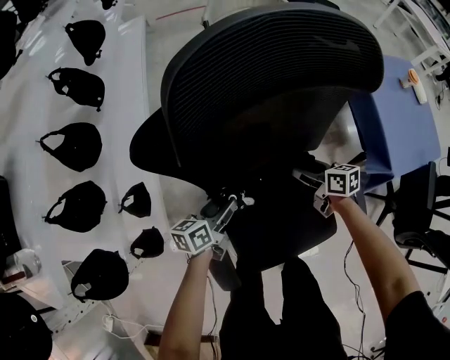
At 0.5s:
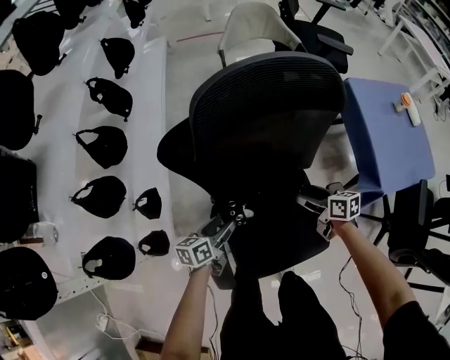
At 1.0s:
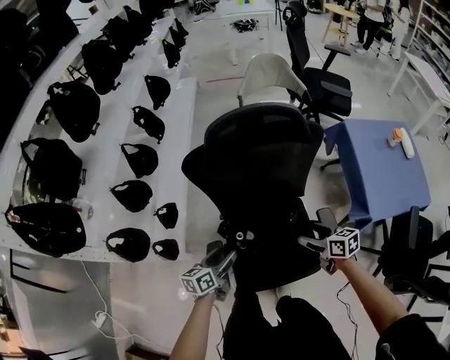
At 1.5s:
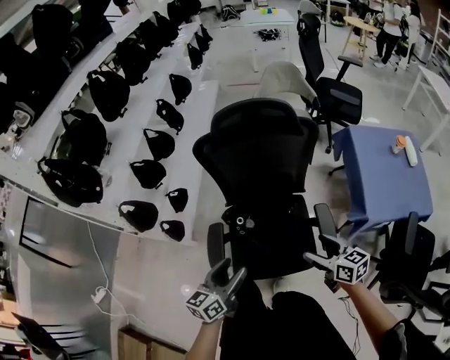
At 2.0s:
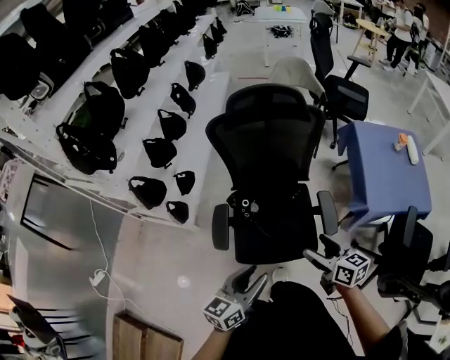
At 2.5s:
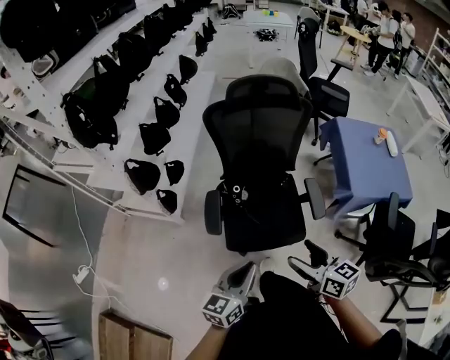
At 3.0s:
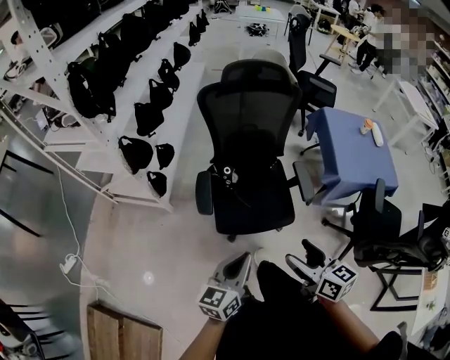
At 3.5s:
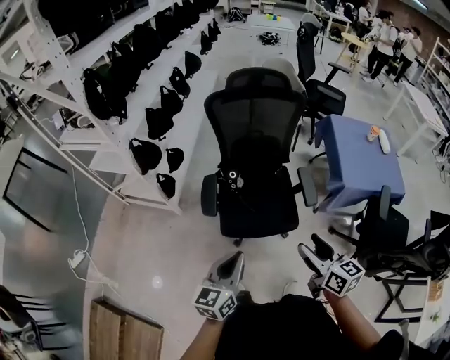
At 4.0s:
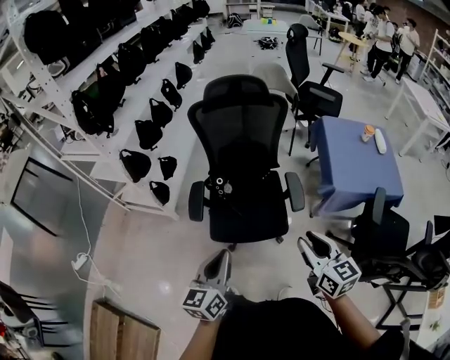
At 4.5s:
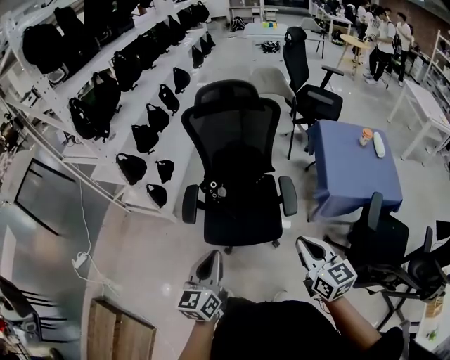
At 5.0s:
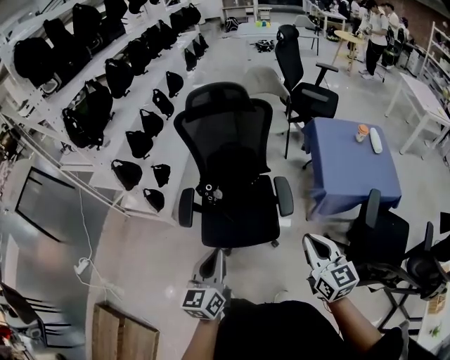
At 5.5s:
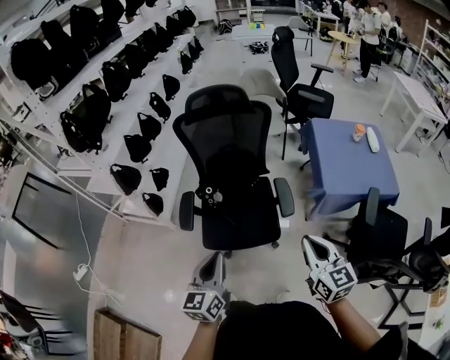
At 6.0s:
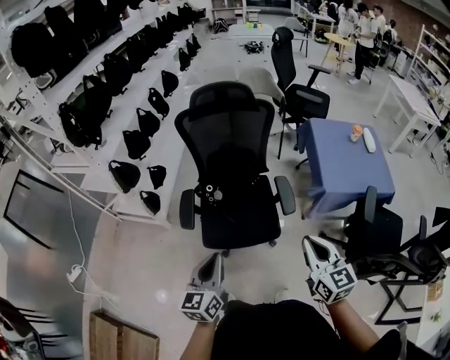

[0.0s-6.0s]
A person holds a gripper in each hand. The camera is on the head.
0.0s to 2.0s: Both grippers move backward and upward, some 50 cm. The left gripper rotates roughly 30 degrees. The right gripper swivels approximately 20 degrees.
2.0s to 4.0s: The grippers both shift backward and upward by some 20 cm. The right gripper changes its angle by roughly 20 degrees, and closes up. Meanwhile the left gripper closes up.
4.0s to 6.0s: The right gripper travels to the right and back again, approximately 10 cm each way. Meanwhile the left gripper moves about 10 cm to the right and comes back.

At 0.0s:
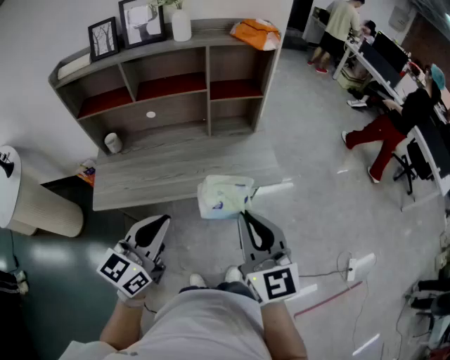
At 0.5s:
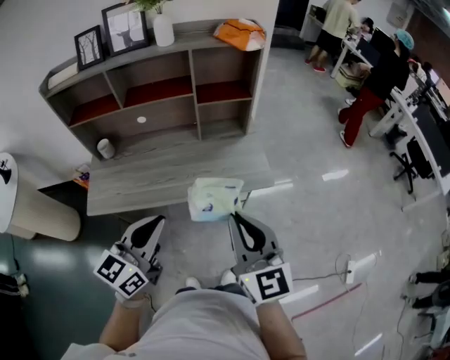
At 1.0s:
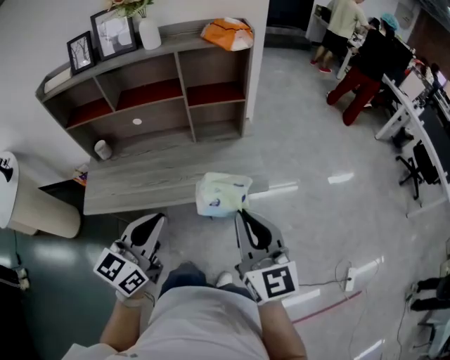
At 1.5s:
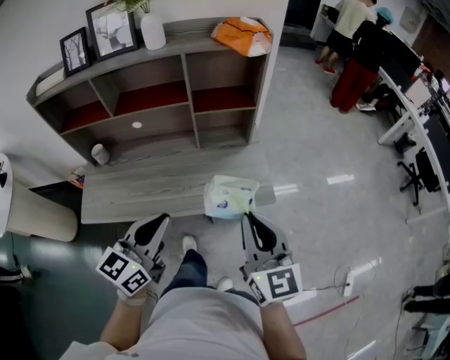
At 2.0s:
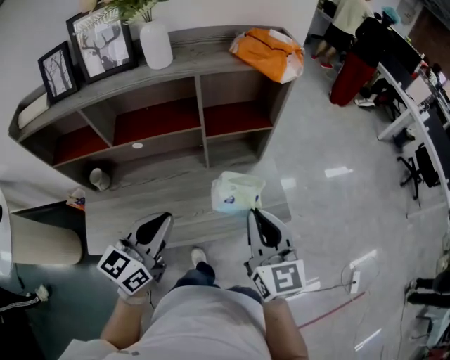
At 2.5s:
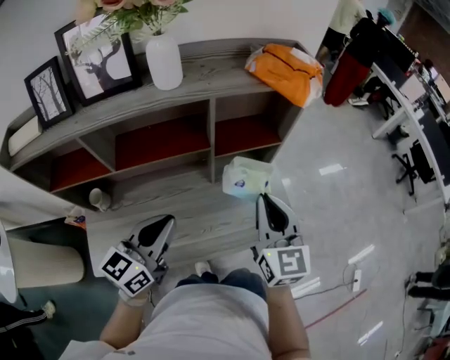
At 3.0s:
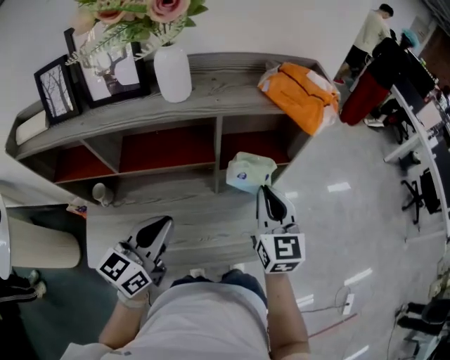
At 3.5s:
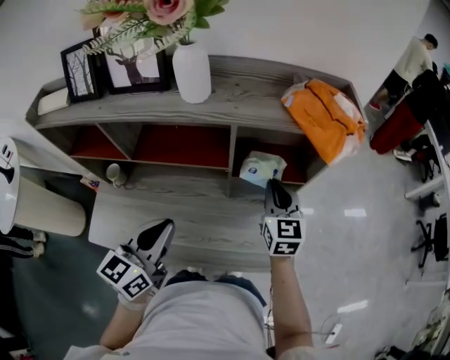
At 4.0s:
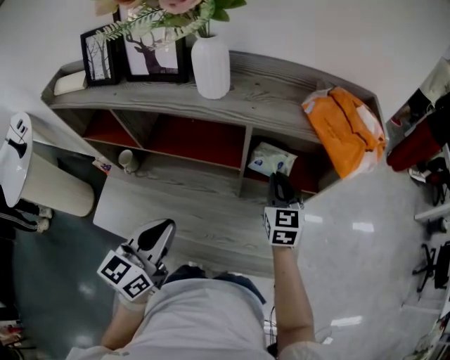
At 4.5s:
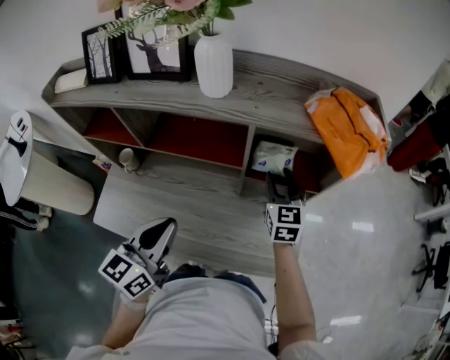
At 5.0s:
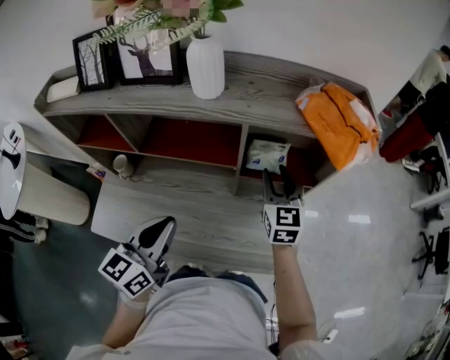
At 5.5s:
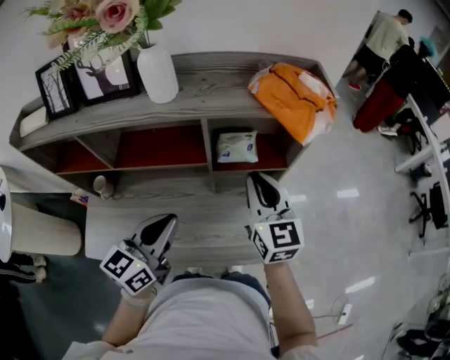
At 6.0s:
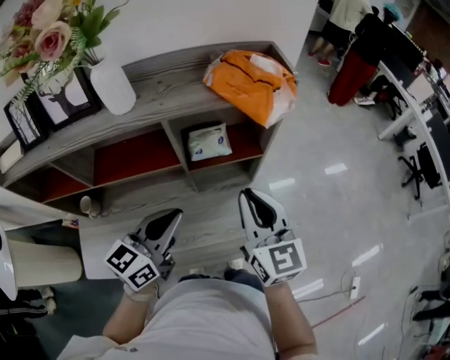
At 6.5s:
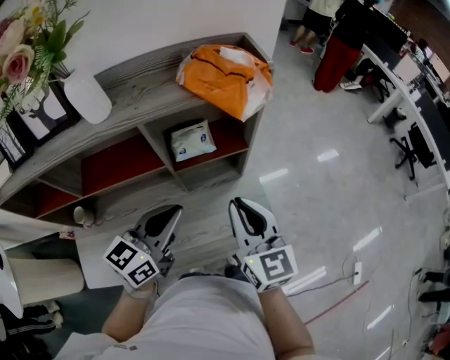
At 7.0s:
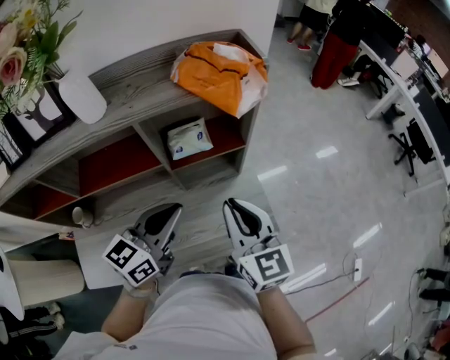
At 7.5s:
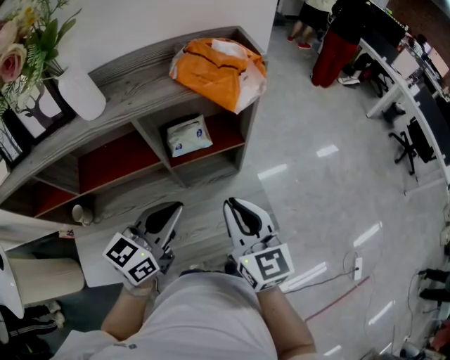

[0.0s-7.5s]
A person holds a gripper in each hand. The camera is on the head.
0.0s to 2.0s: Both grippers travel together forward, about 25 cm.
2.0s to 4.0s: The right gripper moves forward, some 30 cm. Meanwhile the left gripper is displaced forward by approximately 10 cm, and changes its angle by some 30 degrees.
4.0s to 5.5s: The right gripper shifts some 15 cm upward and backward, and opens, then closes once more; the left gripper shifts by about 5 cm.
5.5s to 7.5s: The left gripper goes roughly 10 cm to the right, and swivels approximately 20 degrees; the right gripper travels backward and to the right by approximately 10 cm.

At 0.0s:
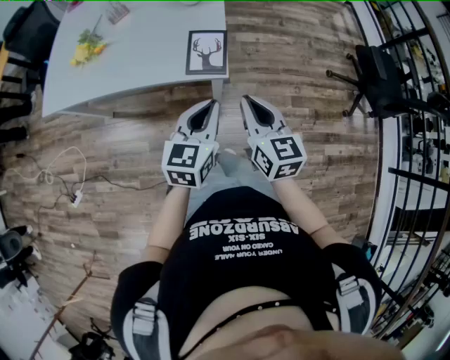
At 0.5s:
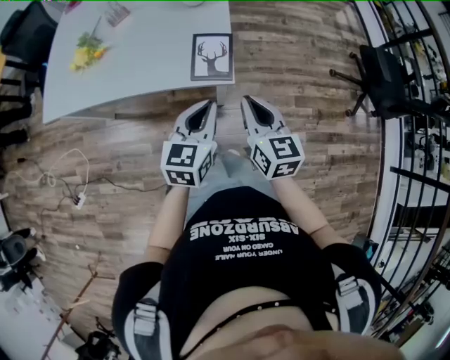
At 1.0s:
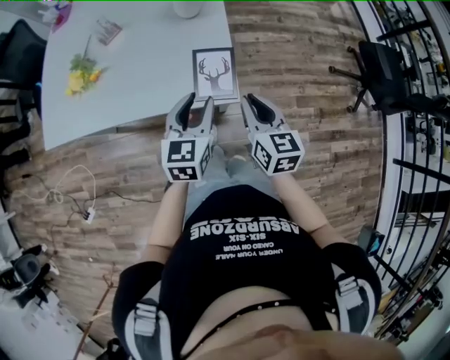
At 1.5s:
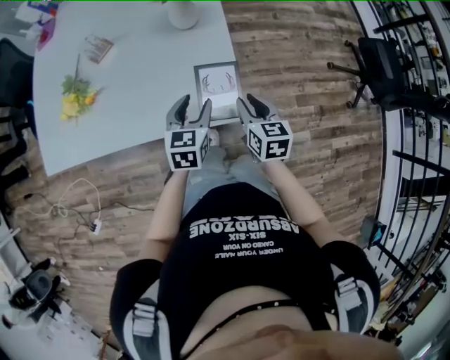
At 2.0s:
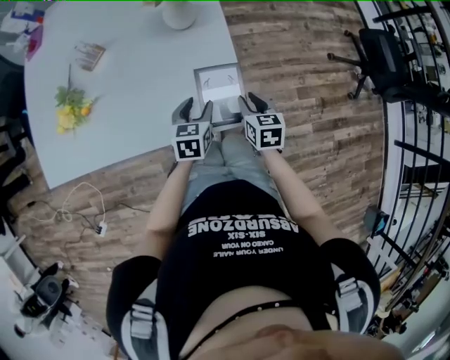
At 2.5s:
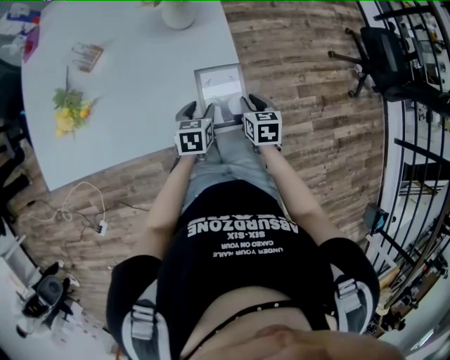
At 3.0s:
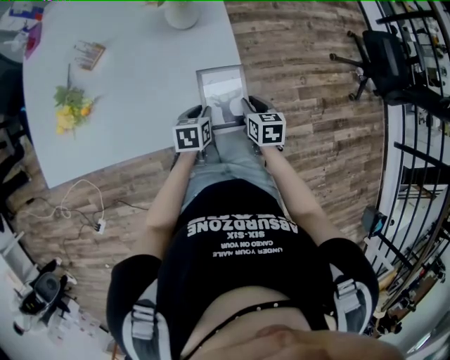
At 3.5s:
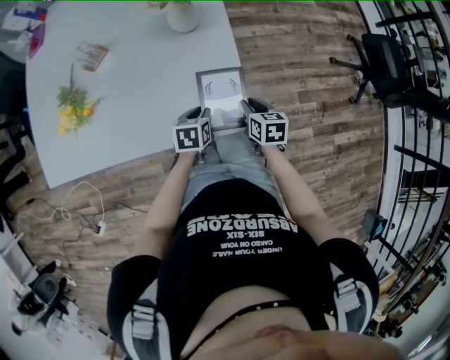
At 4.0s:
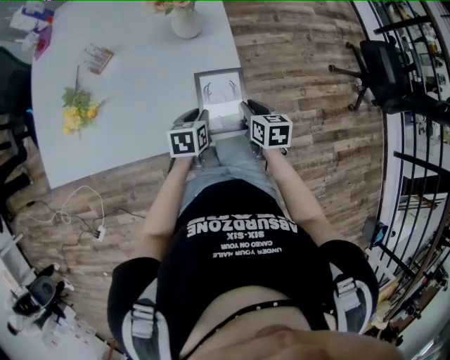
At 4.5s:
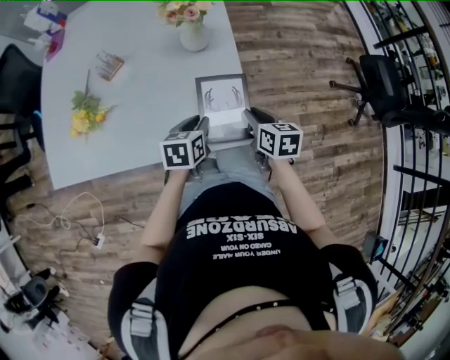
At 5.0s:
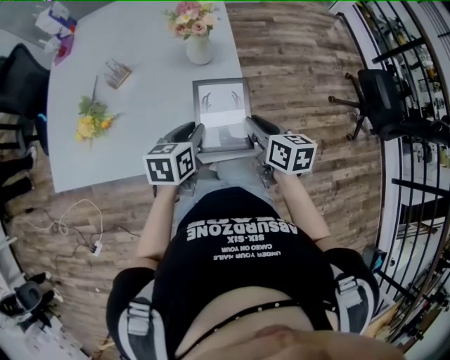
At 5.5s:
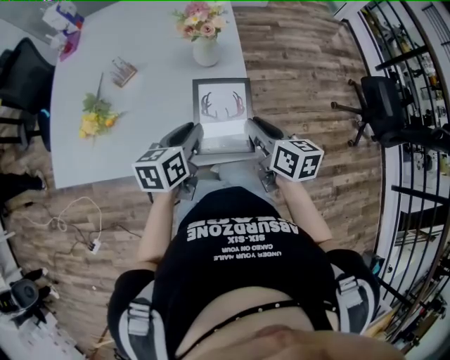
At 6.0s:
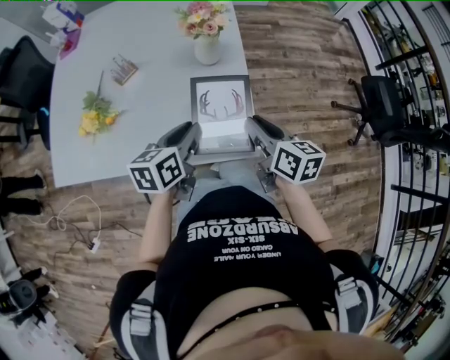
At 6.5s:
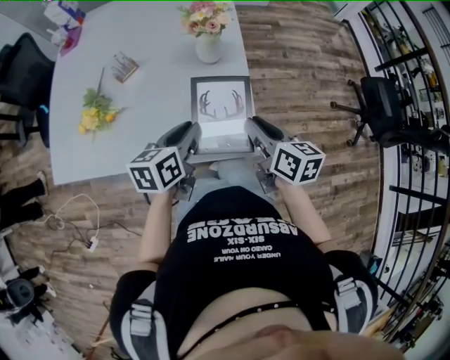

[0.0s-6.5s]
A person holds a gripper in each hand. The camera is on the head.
0.0s to 2.0s: The left gripper heads forward, downward and to the left, covering some 30 cm, rotates some 20 degrees, and opens up; the right gripper is displaced downward and forward by roughly 30 cm, swivels about 30 degrees, and opens its fingers.
2.0s to 4.5s: Both grippers move upward, approximately 5 cm. The left gripper closes.
4.5s to 6.5s: The right gripper goes about 10 cm upward, while the left gripper goes approximately 15 cm upward and to the left.

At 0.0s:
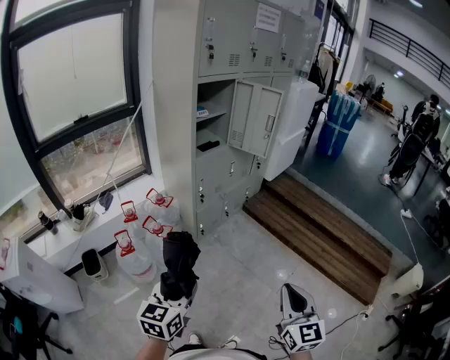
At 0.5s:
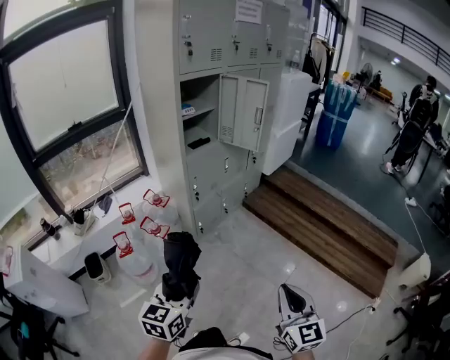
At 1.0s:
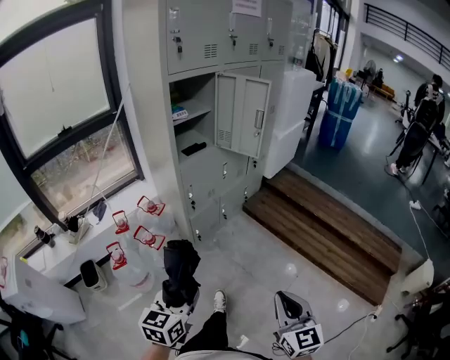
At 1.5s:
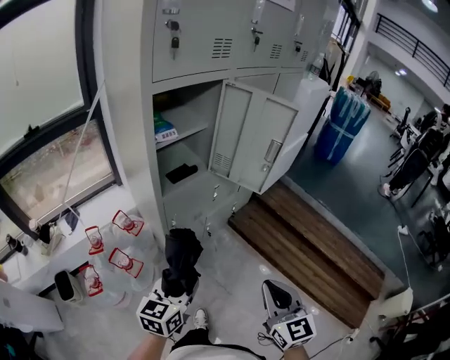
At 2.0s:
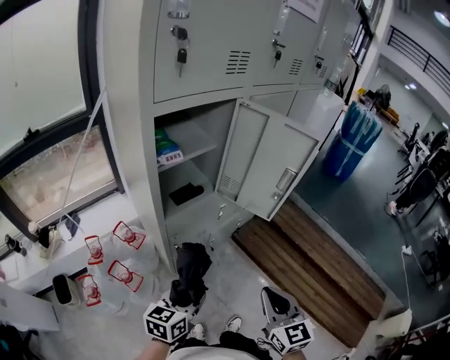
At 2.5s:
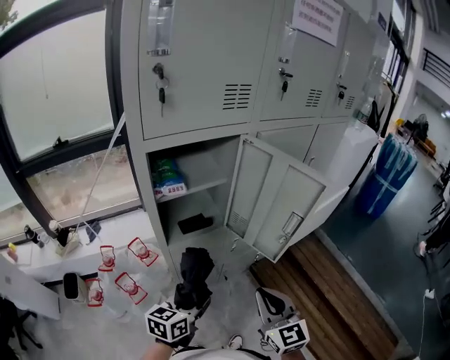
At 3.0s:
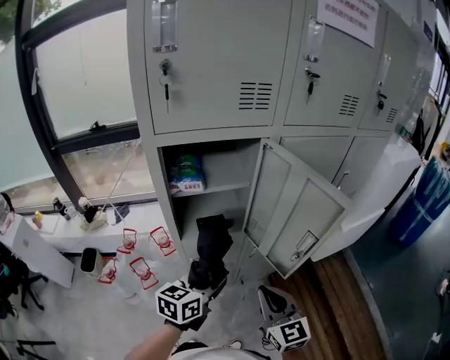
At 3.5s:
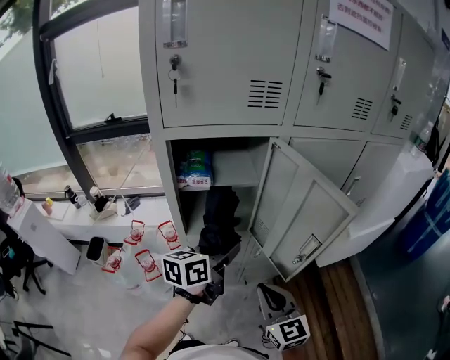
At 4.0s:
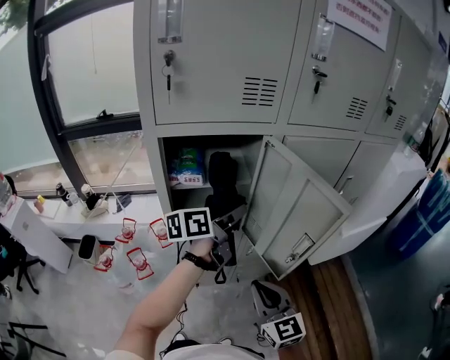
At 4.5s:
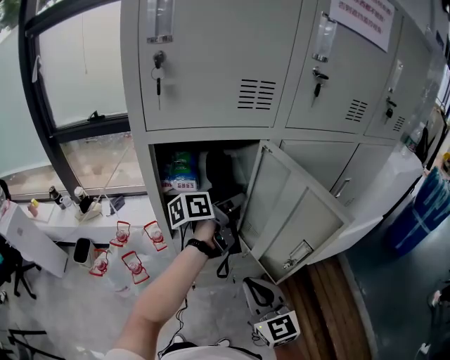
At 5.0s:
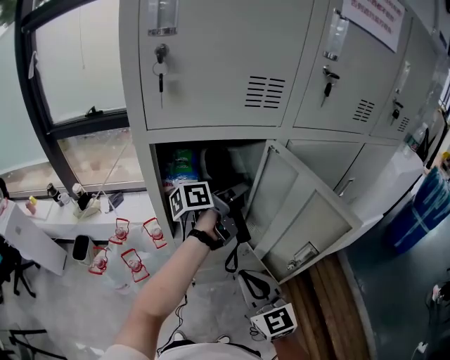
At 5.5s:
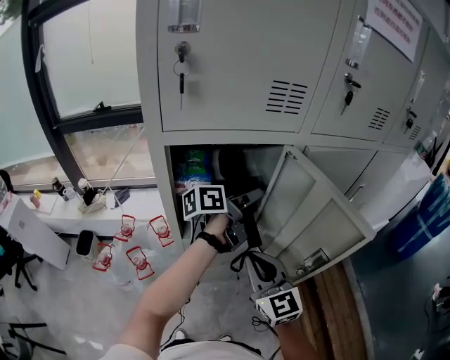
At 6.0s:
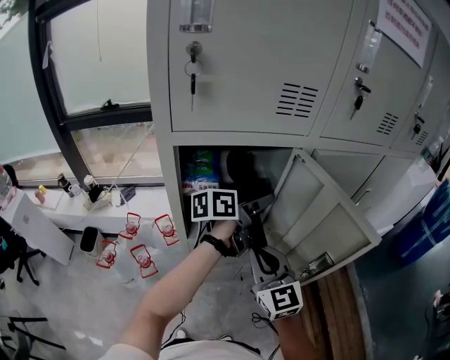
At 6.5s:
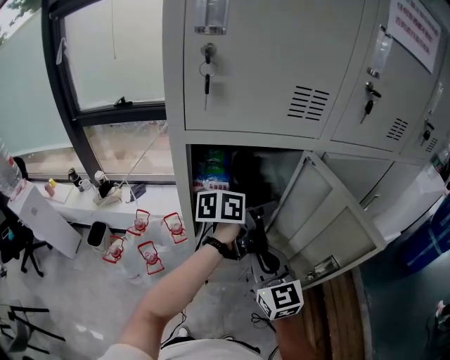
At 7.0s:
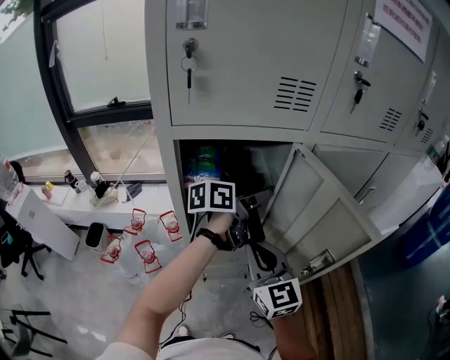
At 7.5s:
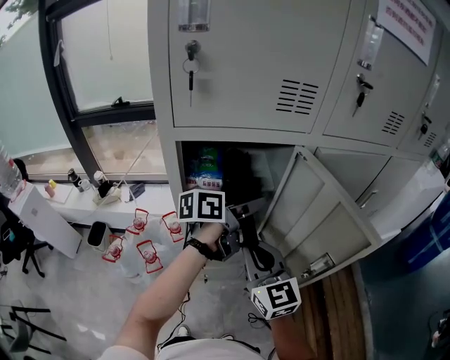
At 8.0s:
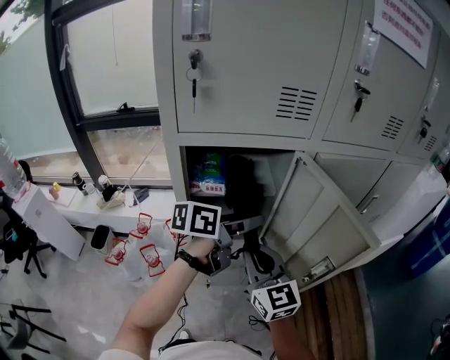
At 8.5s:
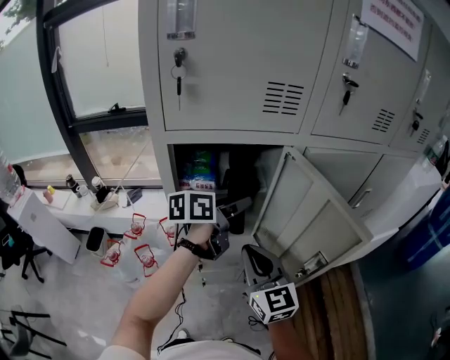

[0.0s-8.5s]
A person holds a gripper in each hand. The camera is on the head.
0.0s to 2.0s: The two grippers travel together, forward, some 40 cm.
2.0s to 4.0s: The right gripper ends up some 20 cm from where it was, and swivels roughly 40 degrees. The left gripper shifts by about 35 cm, and rotates about 40 degrees.
4.0s to 6.5s: The right gripper shifts roughly 15 cm forward and to the left. The left gripper moves forward, some 5 cm, and opens its fingers.
6.5s to 8.5s: The grippers move only a little.
